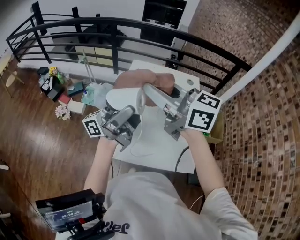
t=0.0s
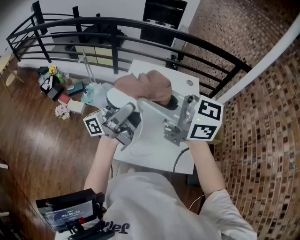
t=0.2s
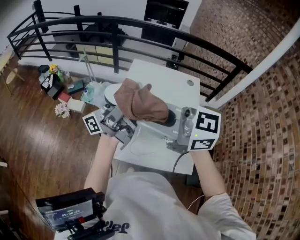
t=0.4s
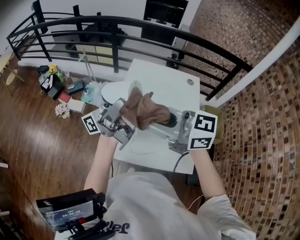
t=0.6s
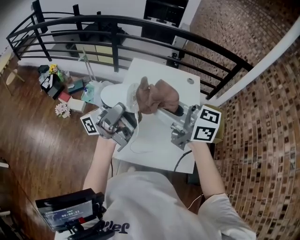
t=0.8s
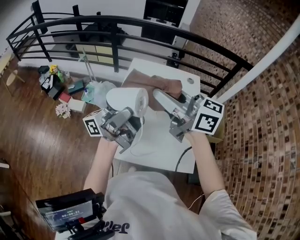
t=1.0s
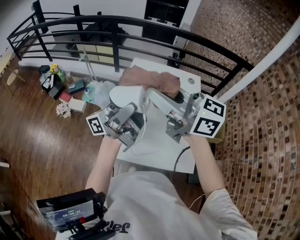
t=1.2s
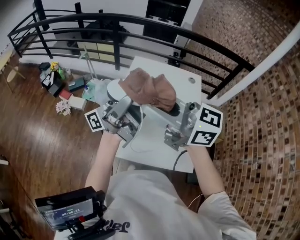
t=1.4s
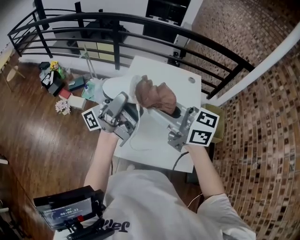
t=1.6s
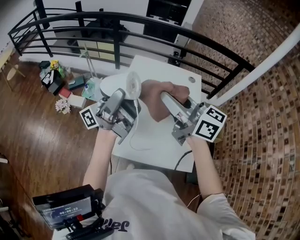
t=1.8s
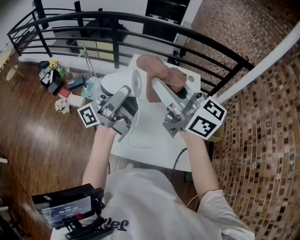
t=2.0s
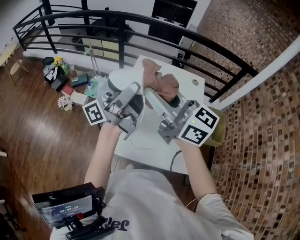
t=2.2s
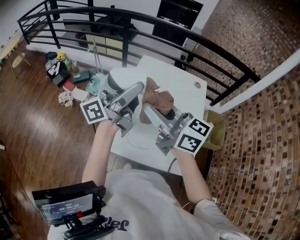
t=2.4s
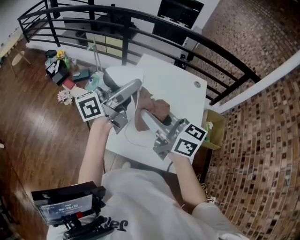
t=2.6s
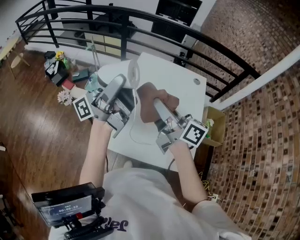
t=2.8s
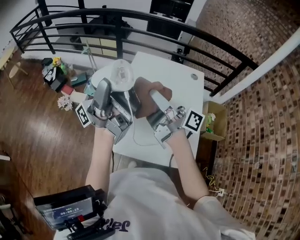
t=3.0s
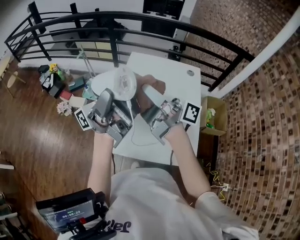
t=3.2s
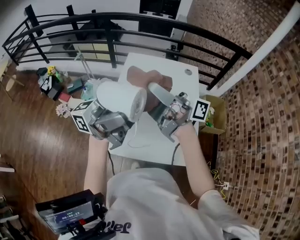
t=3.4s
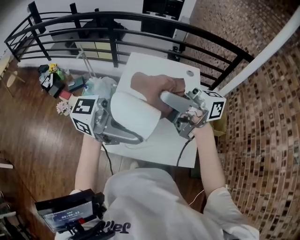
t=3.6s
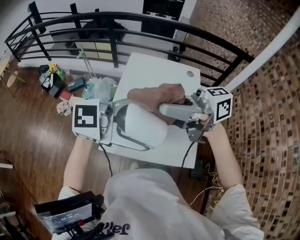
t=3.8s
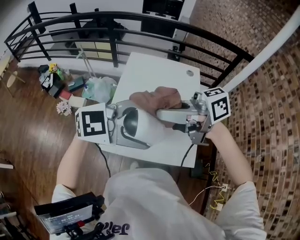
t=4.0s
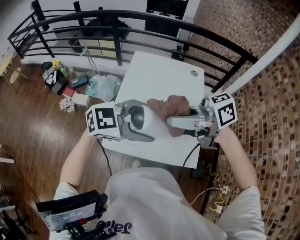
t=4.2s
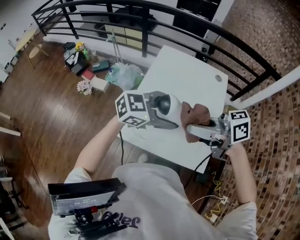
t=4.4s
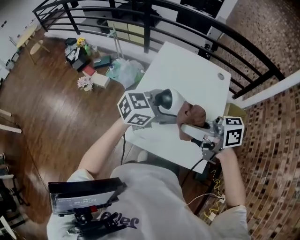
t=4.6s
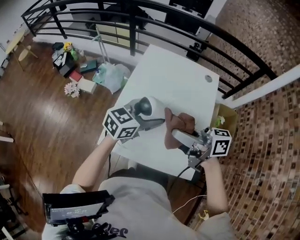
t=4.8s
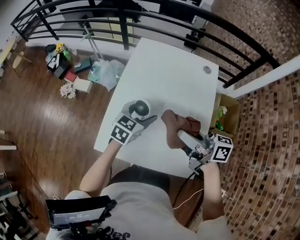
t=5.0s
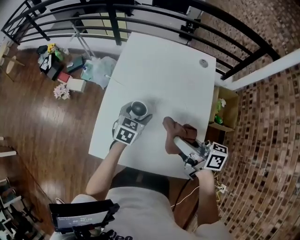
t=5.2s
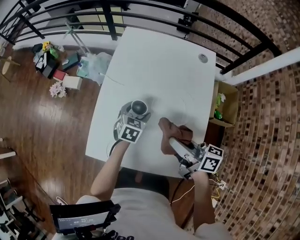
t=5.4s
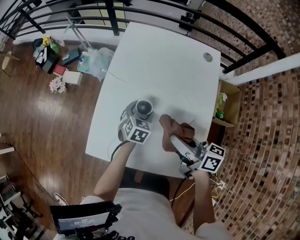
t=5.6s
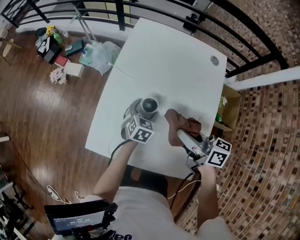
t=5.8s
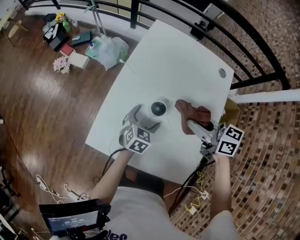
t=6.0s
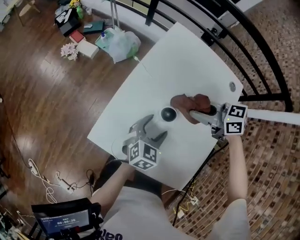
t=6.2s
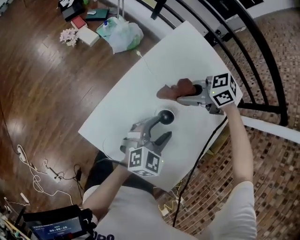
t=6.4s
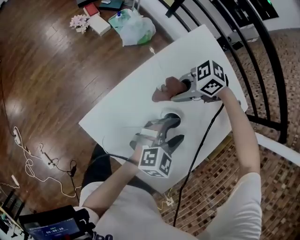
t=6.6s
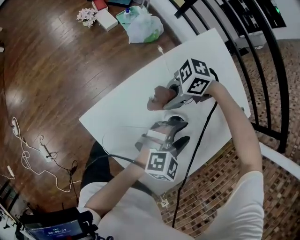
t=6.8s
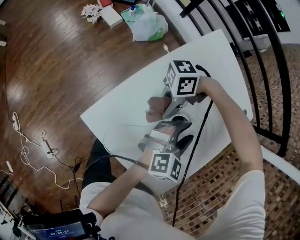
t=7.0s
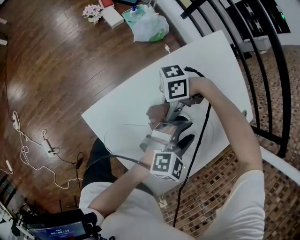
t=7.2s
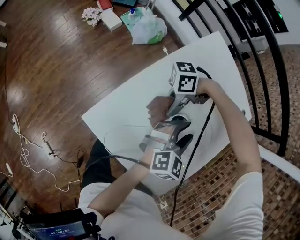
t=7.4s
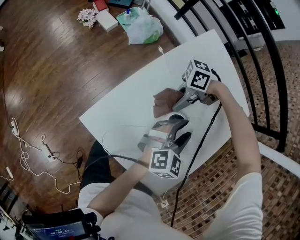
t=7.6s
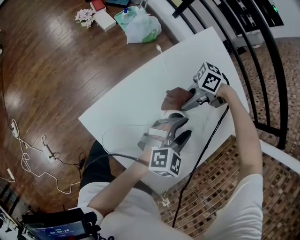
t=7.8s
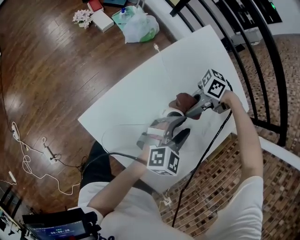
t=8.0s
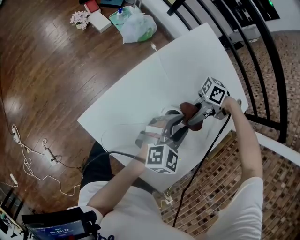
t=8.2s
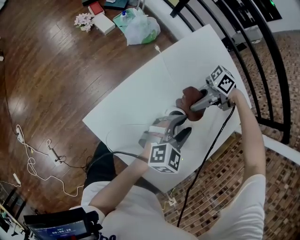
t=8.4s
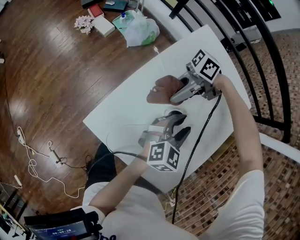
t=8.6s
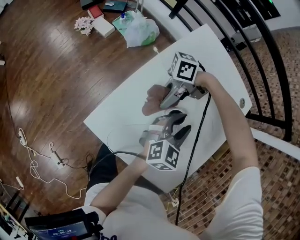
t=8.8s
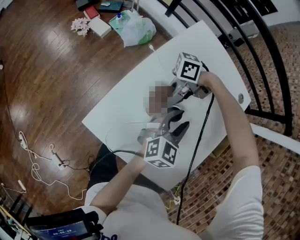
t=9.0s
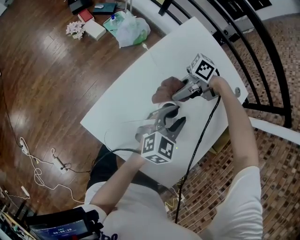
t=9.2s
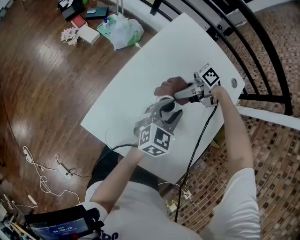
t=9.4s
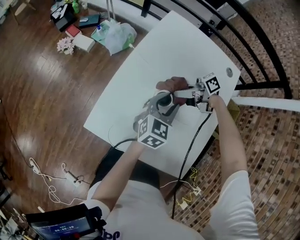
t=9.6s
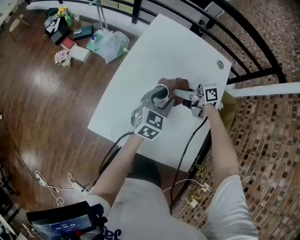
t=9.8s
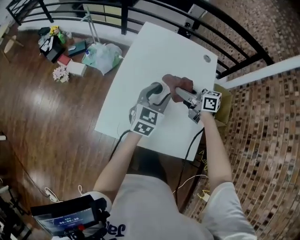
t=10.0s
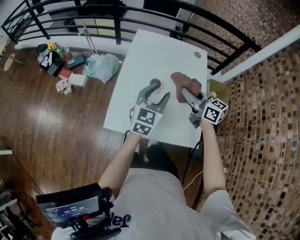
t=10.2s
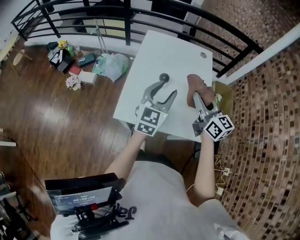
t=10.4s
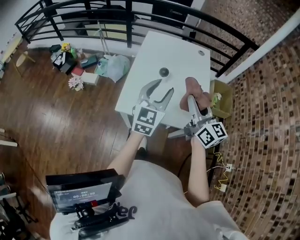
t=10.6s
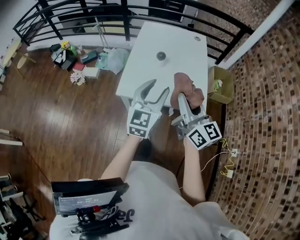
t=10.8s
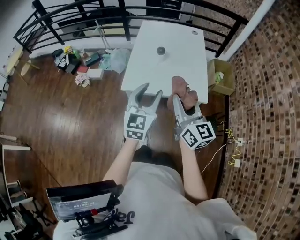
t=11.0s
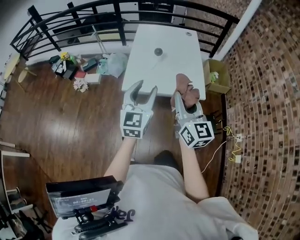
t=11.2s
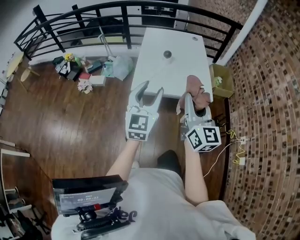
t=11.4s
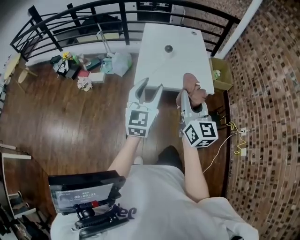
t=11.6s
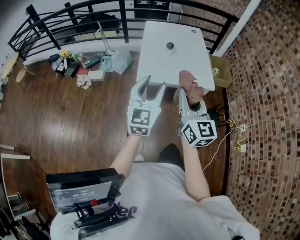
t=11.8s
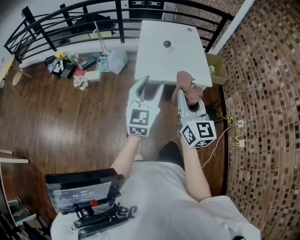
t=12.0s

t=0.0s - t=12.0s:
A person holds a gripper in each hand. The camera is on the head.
t=0.0s - t=1.6s: The right gripper goes up and down, some 10 cm each way, reversing 2 times.
t=1.6s - t=3.0s: The left gripper moves approximately 5 cm. Meanwhile the right gripper goes about 5 cm forward, travels upward and back again, about 10 cm each way, and twists approximately 40 degrees clockwise, seen from behind.
t=3.0s - t=4.4s: The left gripper moves downward, roughly 20 cm, and points its fingers about 80 degrees further downward. Meanwhile the right gripper goes upward and returns, approximately 10 cm each way, and tilts its fingers some 30 degrees downward.
t=4.4s - t=6.0s: The right gripper shifts by roughly 25 cm, and turns by roughly 20 degrees. The left gripper goes about 30 cm downward, and rotates roughly 60 degrees.
t=6.0s - t=7.6s: The right gripper heads downward, covering some 15 cm, and turns by some 100 degrees. The left gripper heads upward, covering about 10 cm, and closes.
t=9.0s - t=10.4s: The right gripper heads upward, covering some 25 cm, and rotates roughly 150 degrees. The left gripper moves about 30 cm, and turns by approximately 30 degrees.
t=10.4s - t=12.0s: The grippers both shift backward and to the left by approximately 40 cm. The right gripper rotates about 30 degrees.

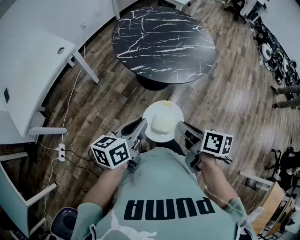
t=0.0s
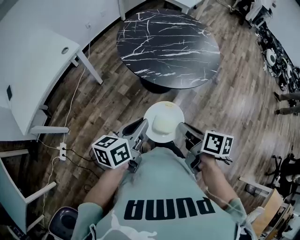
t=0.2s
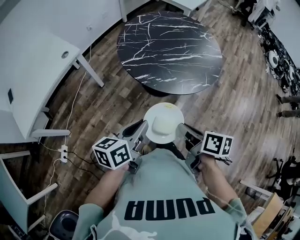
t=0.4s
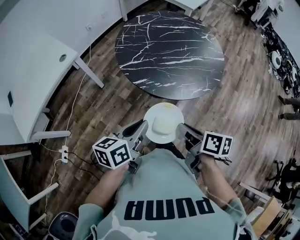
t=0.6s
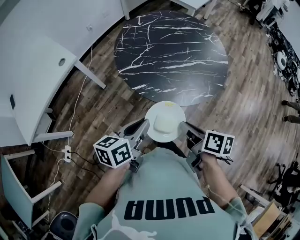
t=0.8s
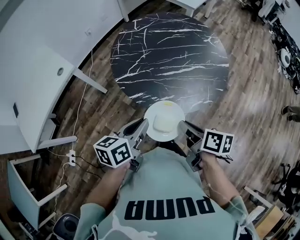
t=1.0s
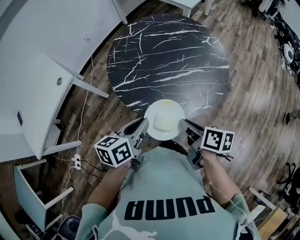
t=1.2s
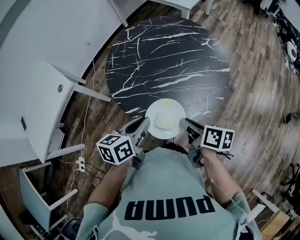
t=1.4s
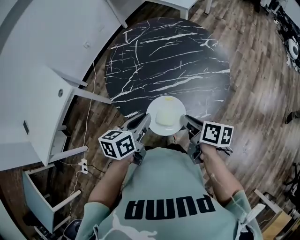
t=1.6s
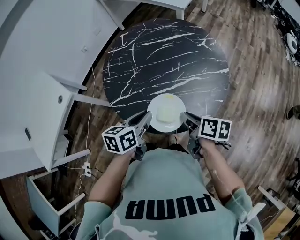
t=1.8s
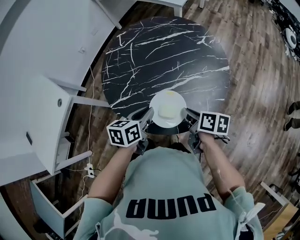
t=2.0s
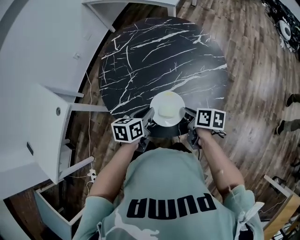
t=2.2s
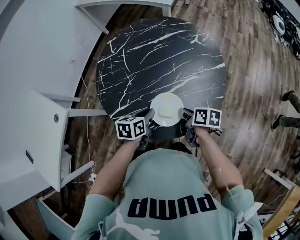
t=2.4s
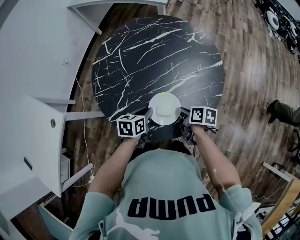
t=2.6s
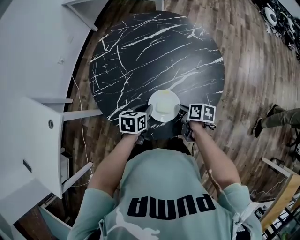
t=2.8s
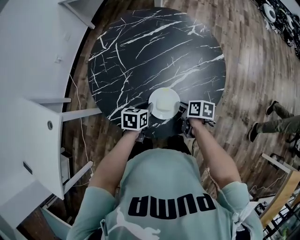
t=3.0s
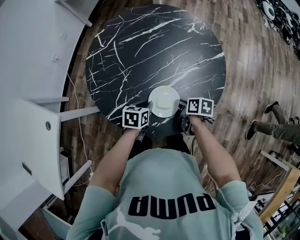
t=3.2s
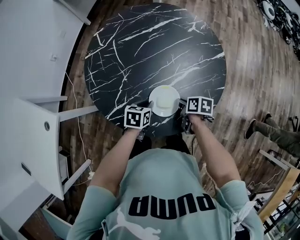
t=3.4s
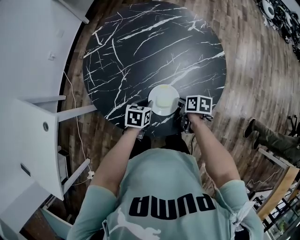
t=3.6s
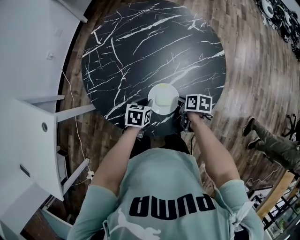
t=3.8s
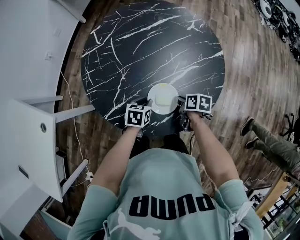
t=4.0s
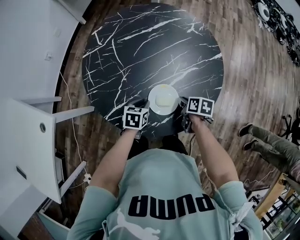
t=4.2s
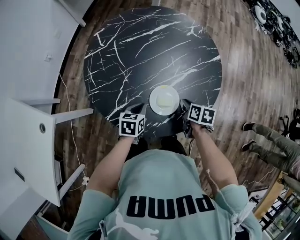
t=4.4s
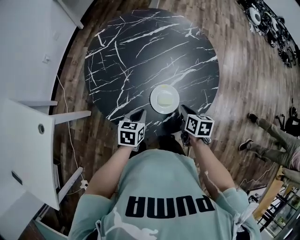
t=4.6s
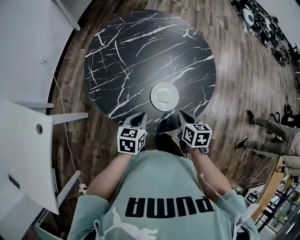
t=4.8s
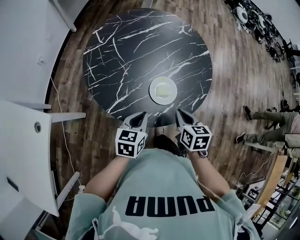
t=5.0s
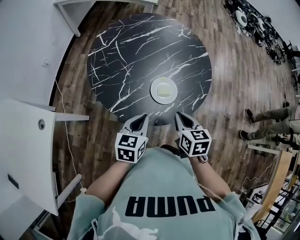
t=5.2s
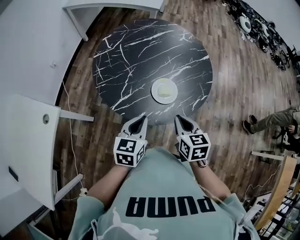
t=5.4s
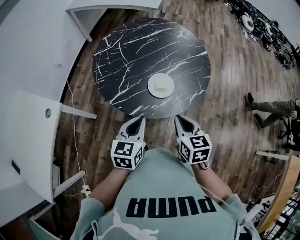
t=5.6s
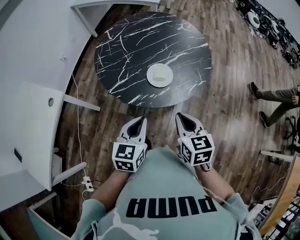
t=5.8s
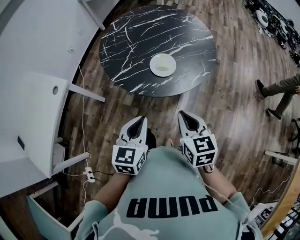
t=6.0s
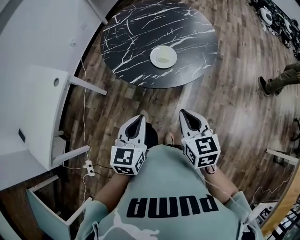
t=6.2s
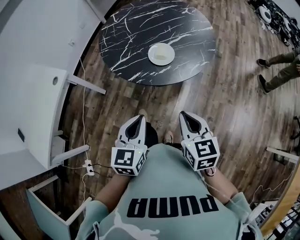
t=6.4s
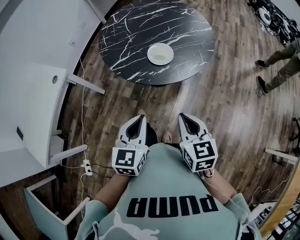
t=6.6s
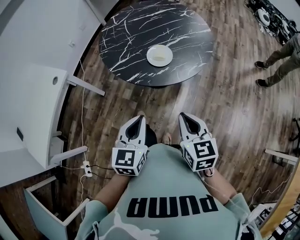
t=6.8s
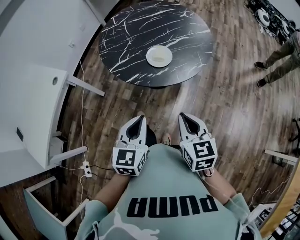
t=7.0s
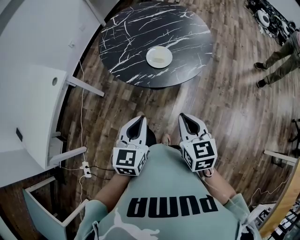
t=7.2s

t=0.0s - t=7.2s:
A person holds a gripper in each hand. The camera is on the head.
t=0.0s - t=1.4s: The two grippers go about 30 cm forward and to the right.
t=1.4s - t=2.8s: Both grippers move downward and forward, about 20 cm. The left gripper turns by some 30 degrees.
t=2.8s - t=4.4s: The grippers make only small movements.
t=4.4s - t=5.8s: Both grippers move backward and upward, some 30 cm. The left gripper changes its angle by about 30 degrees, while the right gripper rotates approximately 40 degrees.
t=5.8s - t=7.2s: The grippers both shift backward by approximately 10 cm.

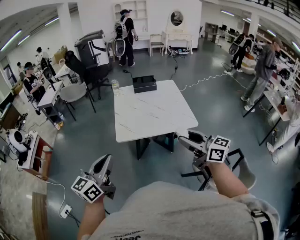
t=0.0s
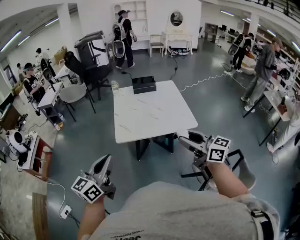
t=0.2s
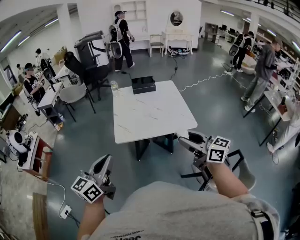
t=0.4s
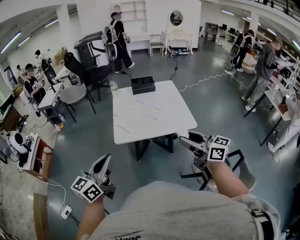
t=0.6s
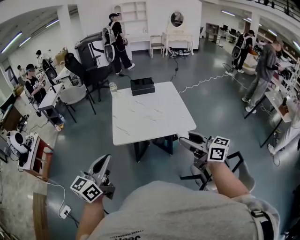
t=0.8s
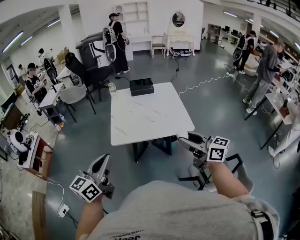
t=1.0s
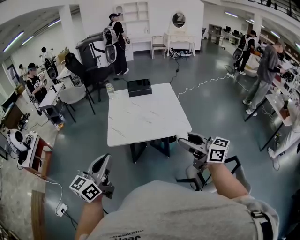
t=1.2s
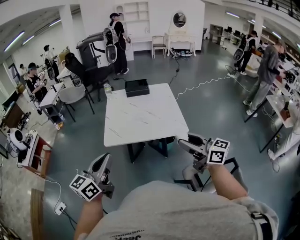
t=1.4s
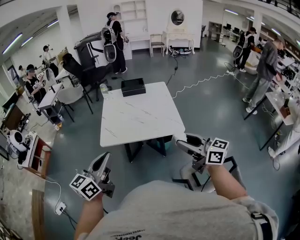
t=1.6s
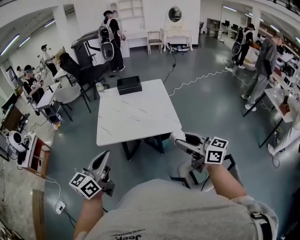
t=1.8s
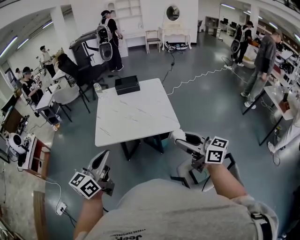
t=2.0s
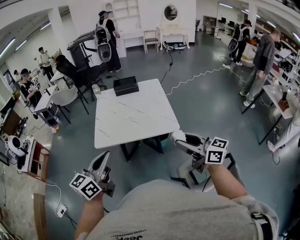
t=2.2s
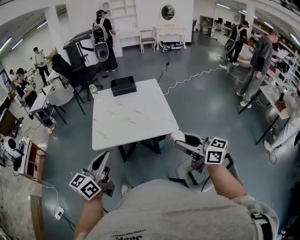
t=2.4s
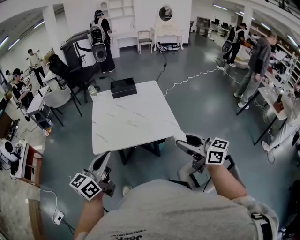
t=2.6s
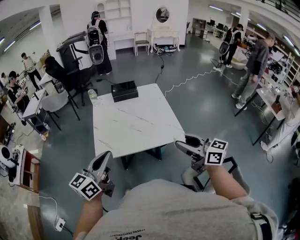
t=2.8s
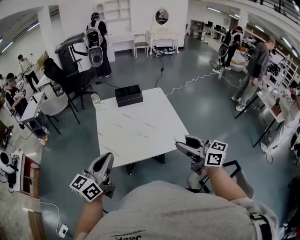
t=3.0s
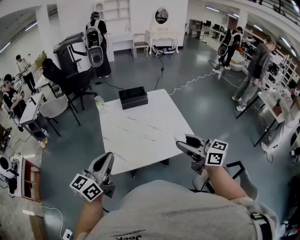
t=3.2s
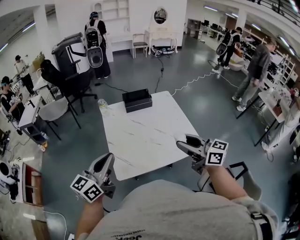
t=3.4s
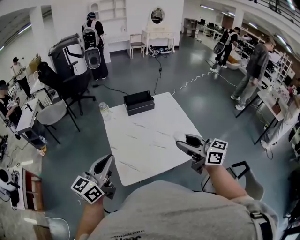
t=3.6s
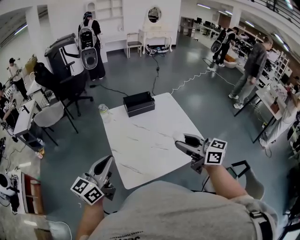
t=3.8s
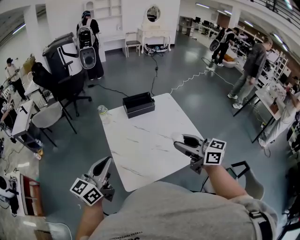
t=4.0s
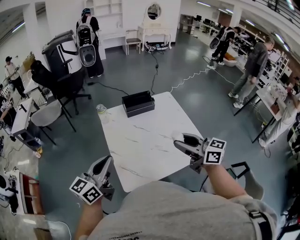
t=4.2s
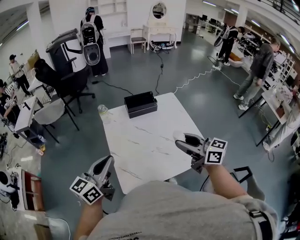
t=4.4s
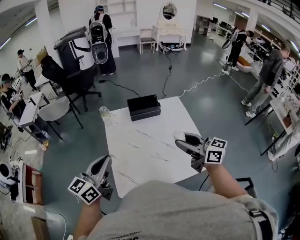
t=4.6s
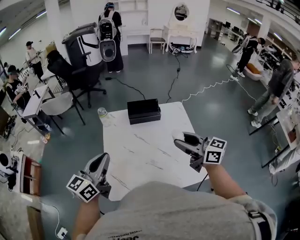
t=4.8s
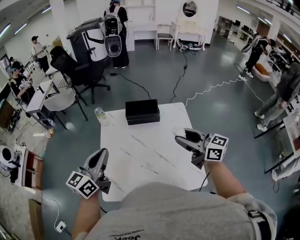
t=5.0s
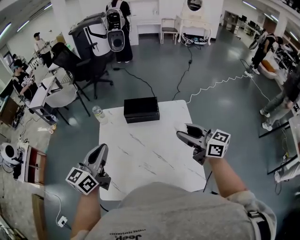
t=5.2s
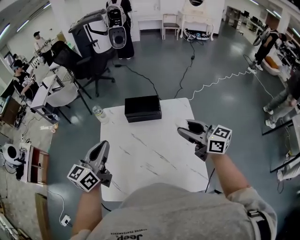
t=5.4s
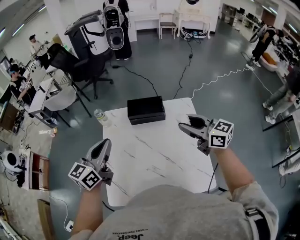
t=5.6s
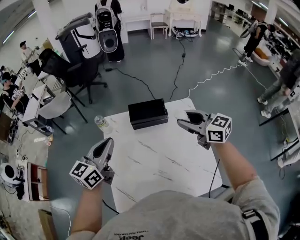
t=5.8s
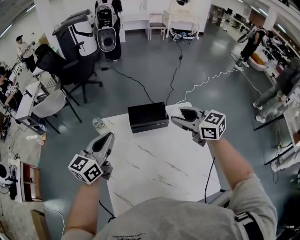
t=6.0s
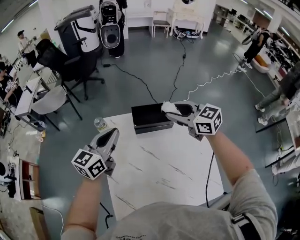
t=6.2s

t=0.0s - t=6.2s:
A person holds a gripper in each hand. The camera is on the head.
t=0.0s - t=1.6s: Both grippers travel together to the right, about 15 cm.
t=1.6s - t=3.2s: Both grippers move forward and to the left, roughly 25 cm.
t=3.2s - t=4.6s: Both grippers move forward, some 20 cm.
t=4.6s - t=6.2s: Both grippers travel together forward, about 30 cm. The right gripper swivels approximately 30 degrees.
